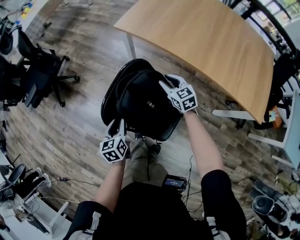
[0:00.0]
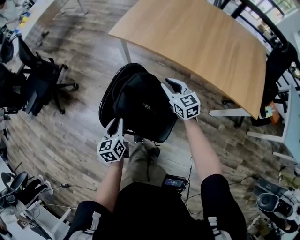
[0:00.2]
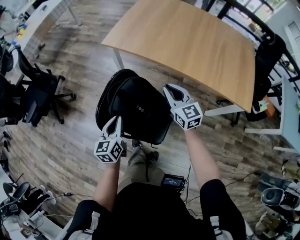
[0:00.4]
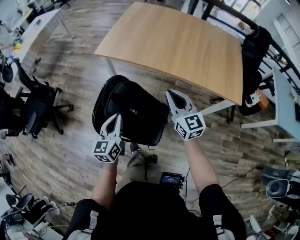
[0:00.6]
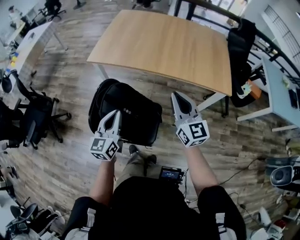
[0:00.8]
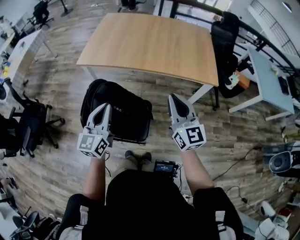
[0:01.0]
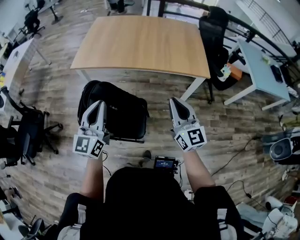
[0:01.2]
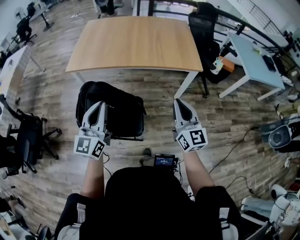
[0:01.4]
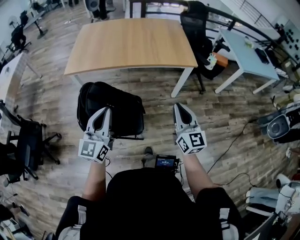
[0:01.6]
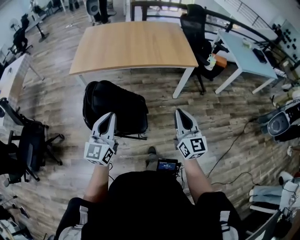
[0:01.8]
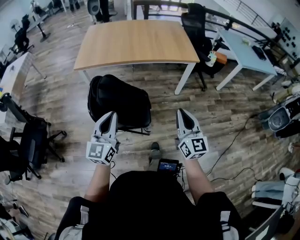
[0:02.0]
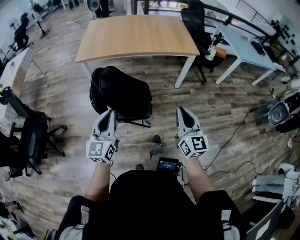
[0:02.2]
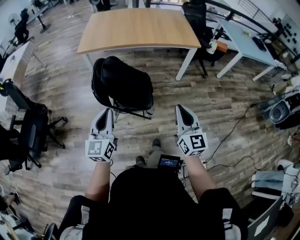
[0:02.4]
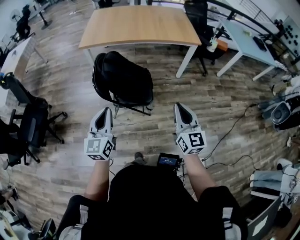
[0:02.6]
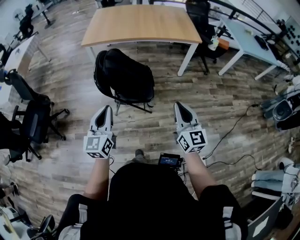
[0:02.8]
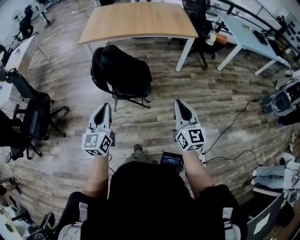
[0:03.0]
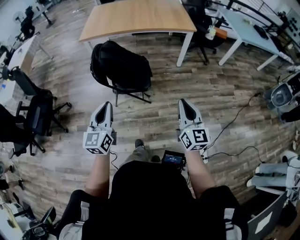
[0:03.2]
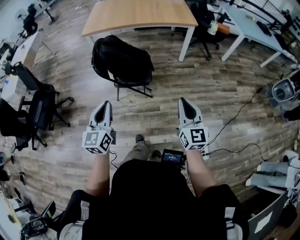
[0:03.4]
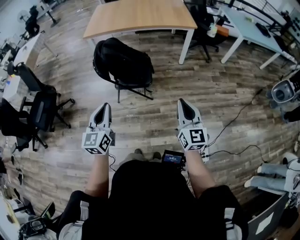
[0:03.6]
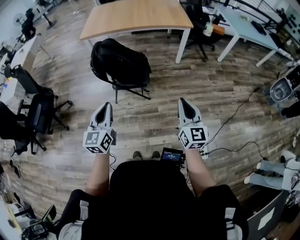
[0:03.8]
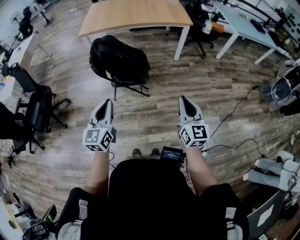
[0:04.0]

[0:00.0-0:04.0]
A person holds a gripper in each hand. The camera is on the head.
0.0 to 1.4 s: The right gripper shifts by about 60 cm, angles its fingers upward, by about 30 degrees, and closes. Meanwhile the left gripper is displaced upward by approximately 35 cm, angles its fingers upward, by some 50 degrees, and closes its fingers.
1.4 to 2.6 s: Both grippers move backward, about 30 cm.
2.6 to 4.0 s: The two grippers go roughly 20 cm backward and to the right.

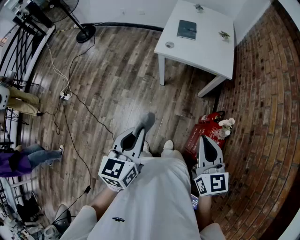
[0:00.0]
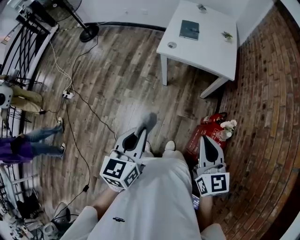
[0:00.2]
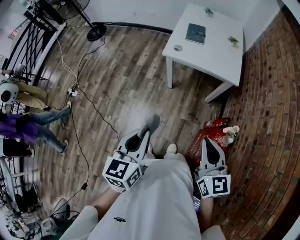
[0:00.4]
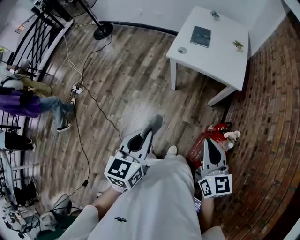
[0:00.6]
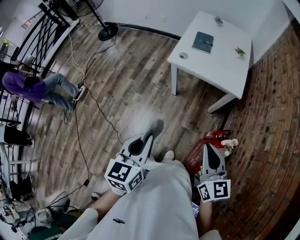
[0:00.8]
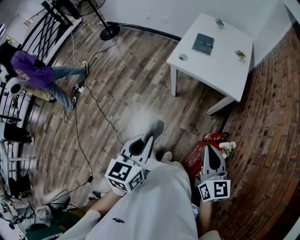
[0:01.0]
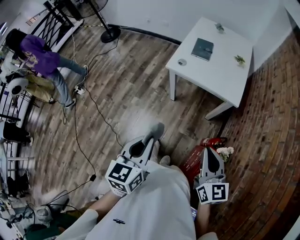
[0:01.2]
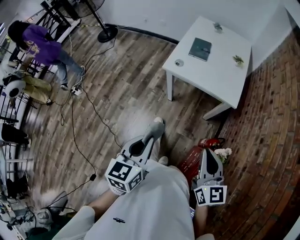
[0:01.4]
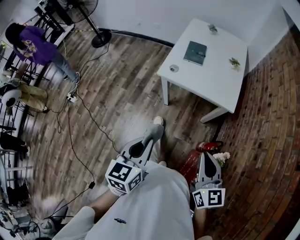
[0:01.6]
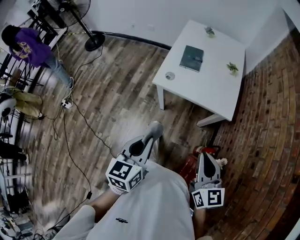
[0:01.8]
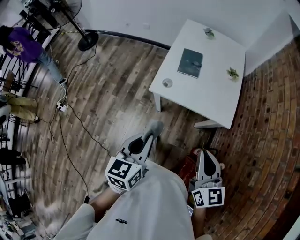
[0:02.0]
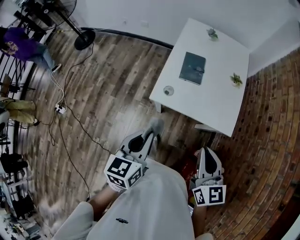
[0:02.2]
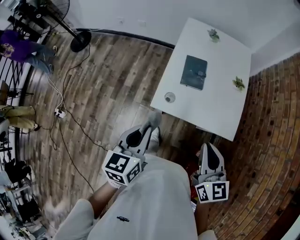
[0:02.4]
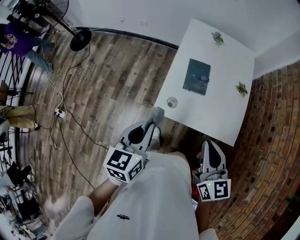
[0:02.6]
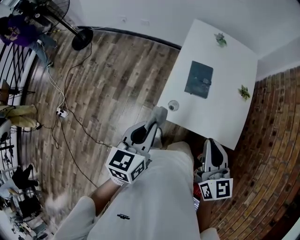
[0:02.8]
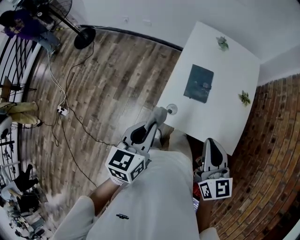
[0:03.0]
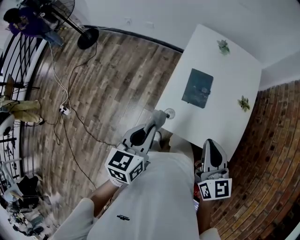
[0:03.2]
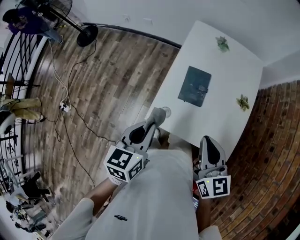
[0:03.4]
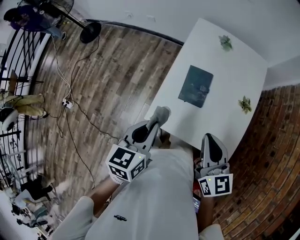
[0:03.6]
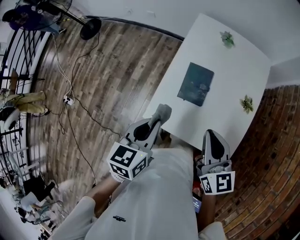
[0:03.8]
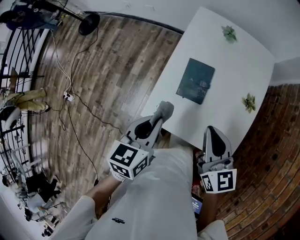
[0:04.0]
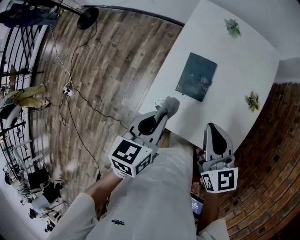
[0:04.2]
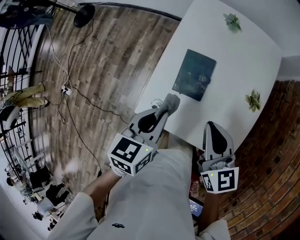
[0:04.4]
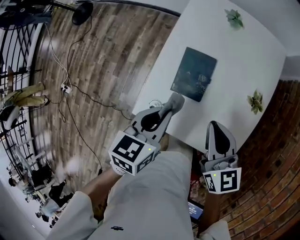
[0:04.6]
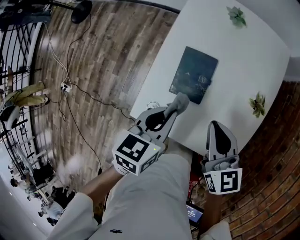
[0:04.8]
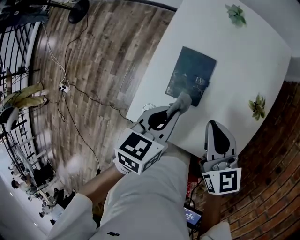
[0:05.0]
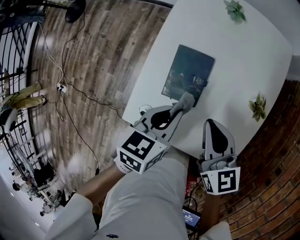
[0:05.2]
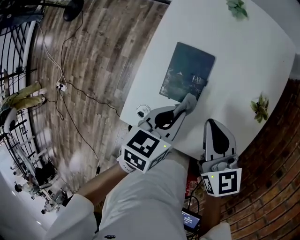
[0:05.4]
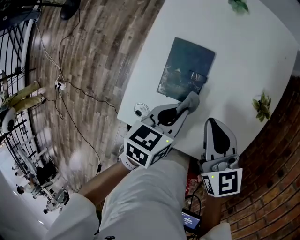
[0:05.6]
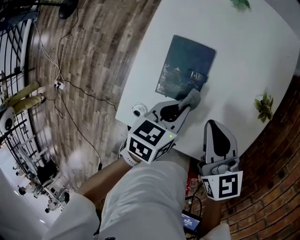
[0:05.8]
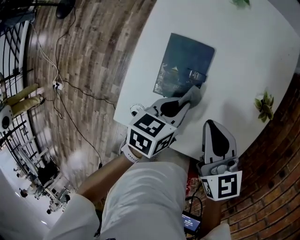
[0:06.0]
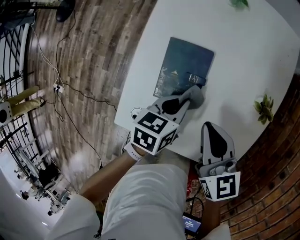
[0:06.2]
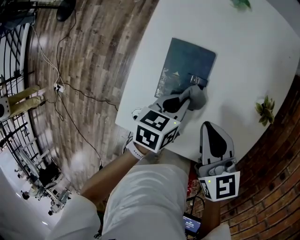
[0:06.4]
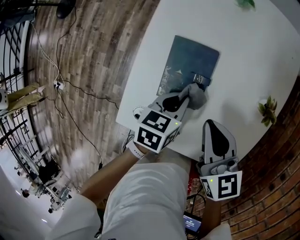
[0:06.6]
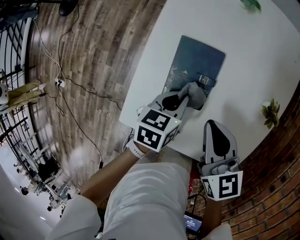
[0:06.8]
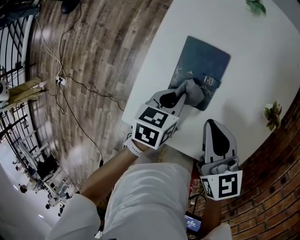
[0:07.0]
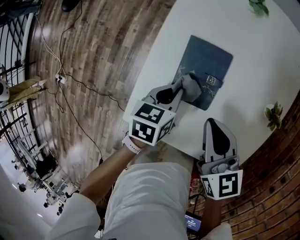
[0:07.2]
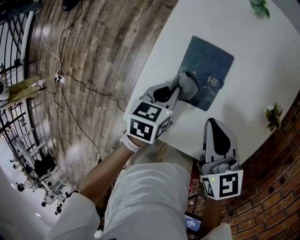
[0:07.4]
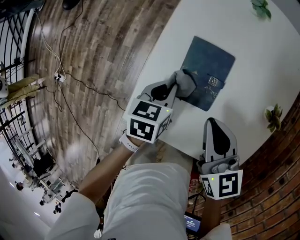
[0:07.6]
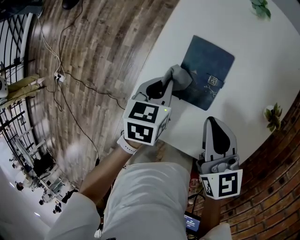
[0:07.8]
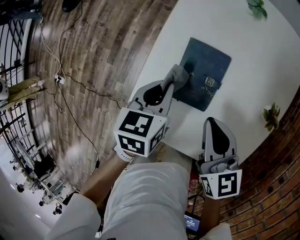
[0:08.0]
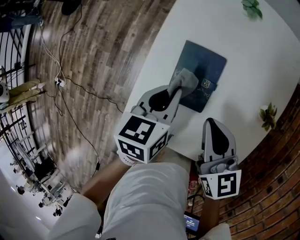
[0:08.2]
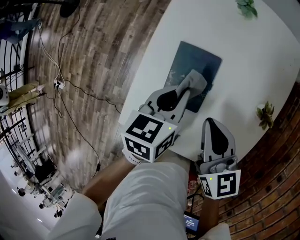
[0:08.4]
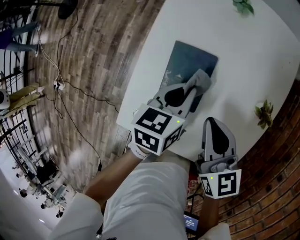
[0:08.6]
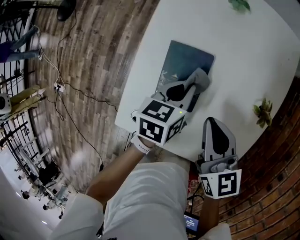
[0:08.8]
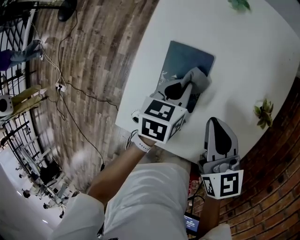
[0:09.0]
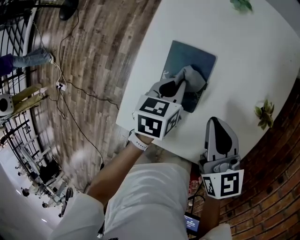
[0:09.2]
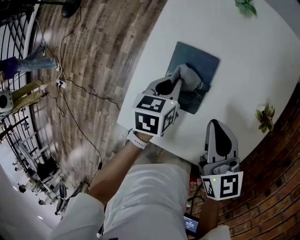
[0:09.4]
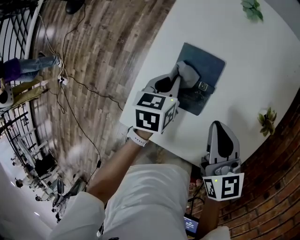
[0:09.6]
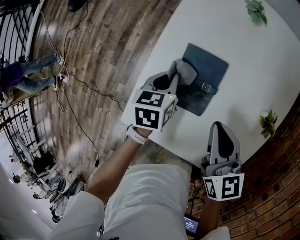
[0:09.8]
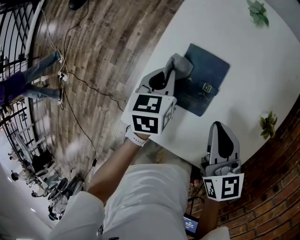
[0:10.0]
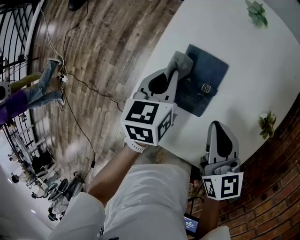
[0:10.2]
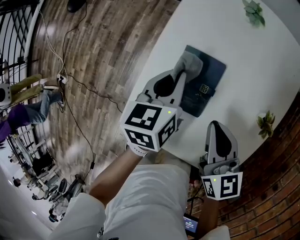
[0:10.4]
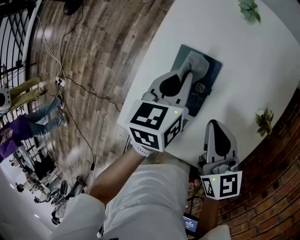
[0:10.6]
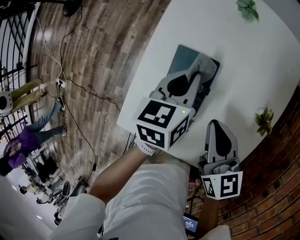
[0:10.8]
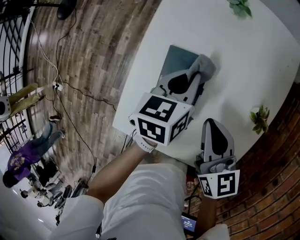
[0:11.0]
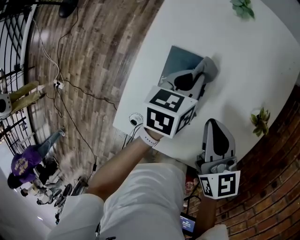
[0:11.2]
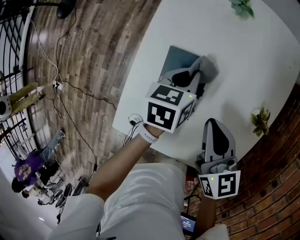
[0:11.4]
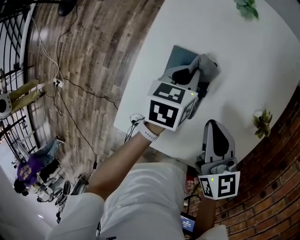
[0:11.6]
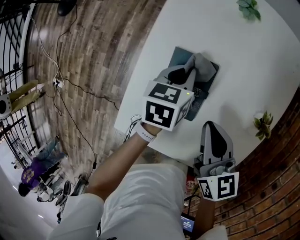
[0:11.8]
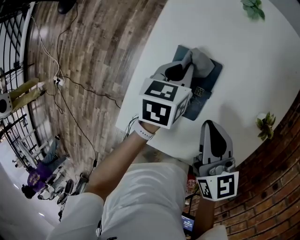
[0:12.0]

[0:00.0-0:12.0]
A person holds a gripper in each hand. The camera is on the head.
0.0 to 1.6 s: The two grippers go roughly 15 cm forward and to the right.
1.6 to 3.0 s: The pair of grippers is taken forward, about 40 cm.
3.0 to 4.4 s: The right gripper moves forward, downward and to the right, about 20 cm. The left gripper heads to the right, forward and downward, covering roughly 20 cm.
4.4 to 6.0 s: The left gripper is displaced downward and to the right by some 20 cm, and changes its angle by about 20 degrees, while the right gripper shifts roughly 10 cm downward.
6.0 to 7.6 s: The right gripper travels to the left by roughly 5 cm, while the left gripper is displaced to the left by some 10 cm.
7.6 to 9.0 s: The right gripper heads to the right, covering some 5 cm; the left gripper travels to the right by some 10 cm.
9.0 to 10.4 s: The left gripper shifts about 10 cm upward and to the left.
10.4 to 12.0 s: The left gripper moves downward, some 10 cm.

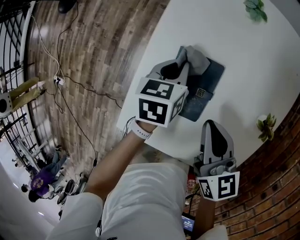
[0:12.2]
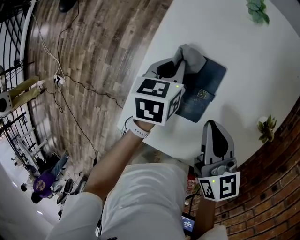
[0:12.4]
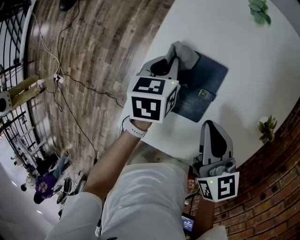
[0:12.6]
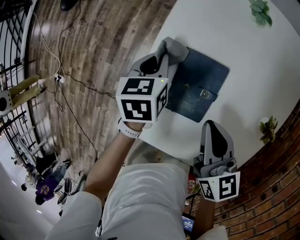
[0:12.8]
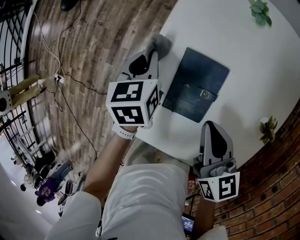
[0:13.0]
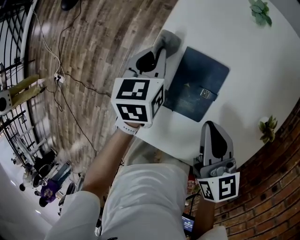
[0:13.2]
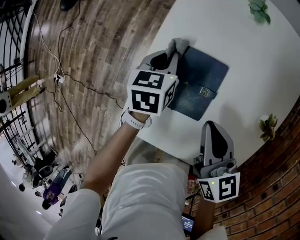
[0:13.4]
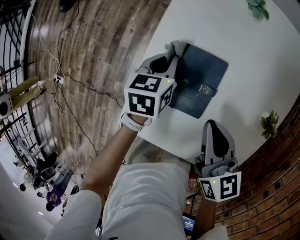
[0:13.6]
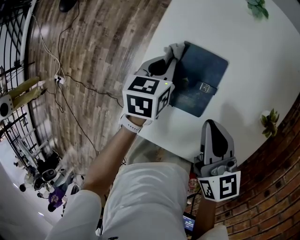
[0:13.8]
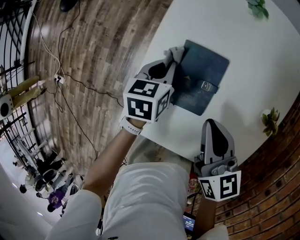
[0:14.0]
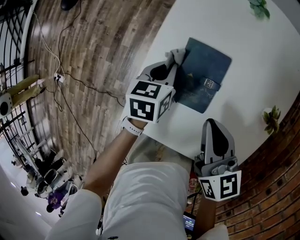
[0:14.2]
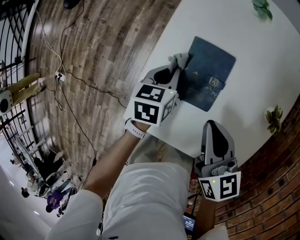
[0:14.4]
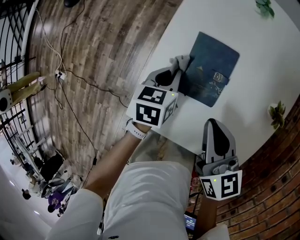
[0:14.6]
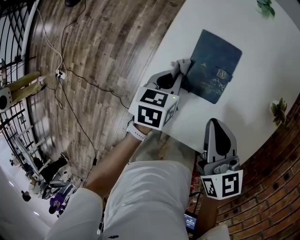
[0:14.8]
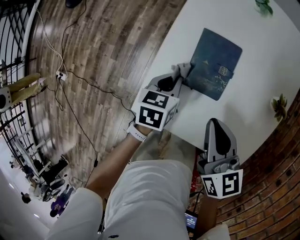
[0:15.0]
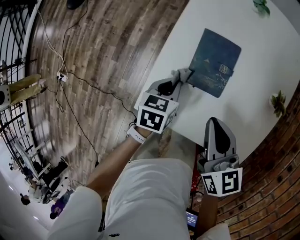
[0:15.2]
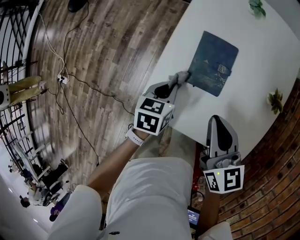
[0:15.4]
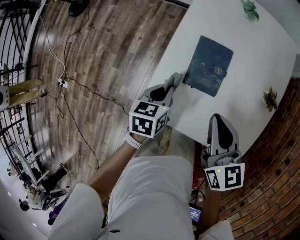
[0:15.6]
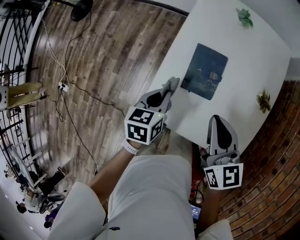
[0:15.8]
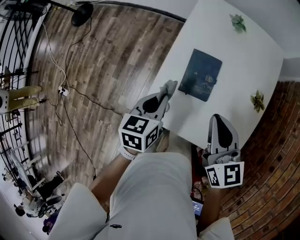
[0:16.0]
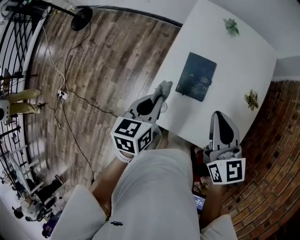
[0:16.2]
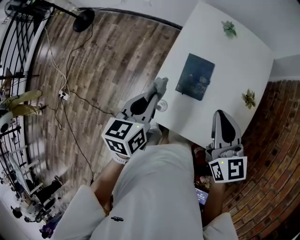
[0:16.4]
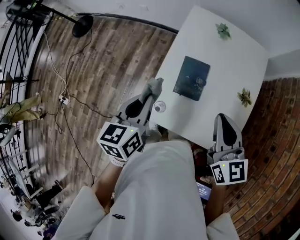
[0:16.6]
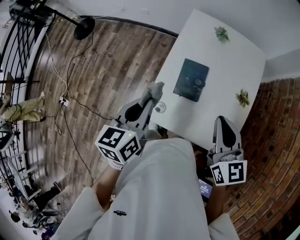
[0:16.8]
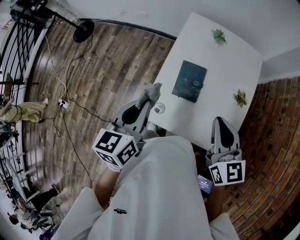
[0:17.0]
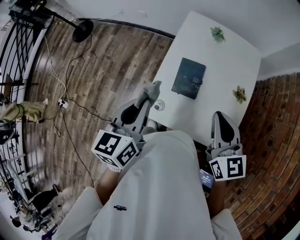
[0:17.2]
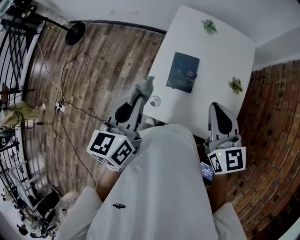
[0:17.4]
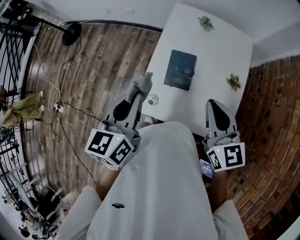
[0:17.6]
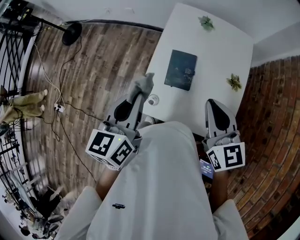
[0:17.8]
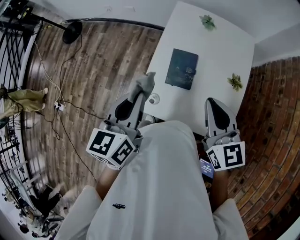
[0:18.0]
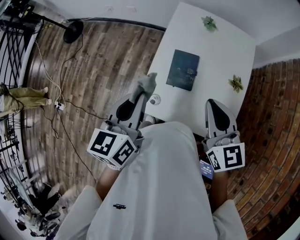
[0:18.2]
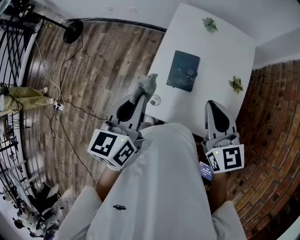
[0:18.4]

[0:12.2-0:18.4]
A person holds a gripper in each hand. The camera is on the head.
13.8 to 15.4 s: The right gripper travels backward by approximately 10 cm. The left gripper travels backward by some 15 cm.
15.4 to 16.8 s: The right gripper is displaced upward by some 15 cm; the left gripper heads upward, covering roughly 30 cm, and turns by roughly 30 degrees.
16.8 to 18.4 s: The grippers move only a little.

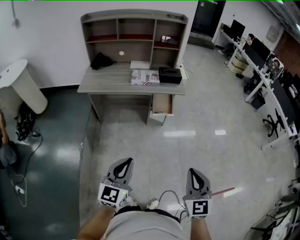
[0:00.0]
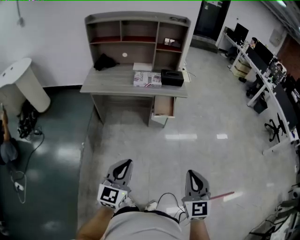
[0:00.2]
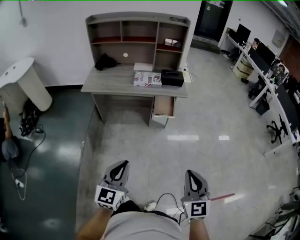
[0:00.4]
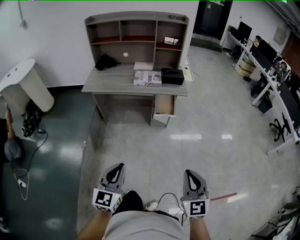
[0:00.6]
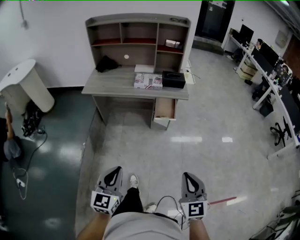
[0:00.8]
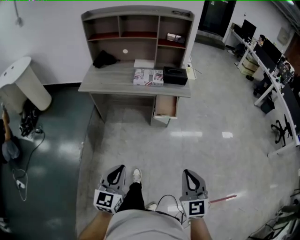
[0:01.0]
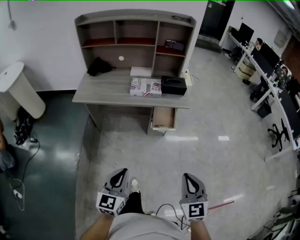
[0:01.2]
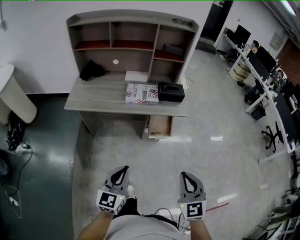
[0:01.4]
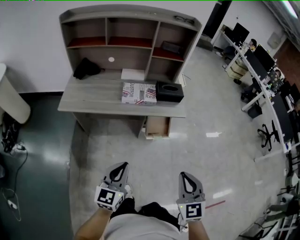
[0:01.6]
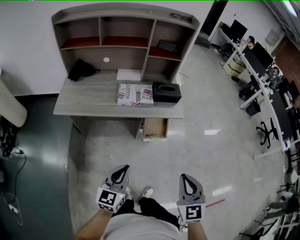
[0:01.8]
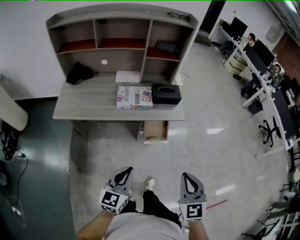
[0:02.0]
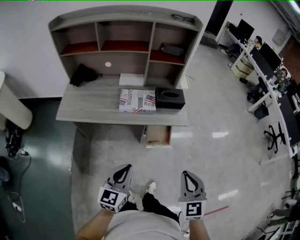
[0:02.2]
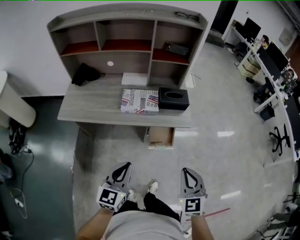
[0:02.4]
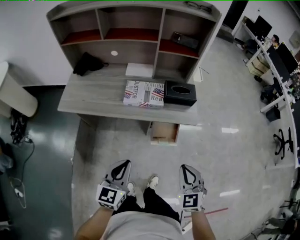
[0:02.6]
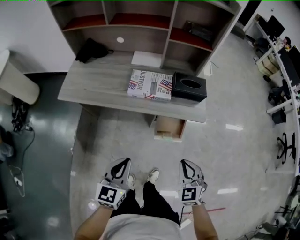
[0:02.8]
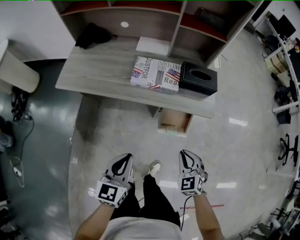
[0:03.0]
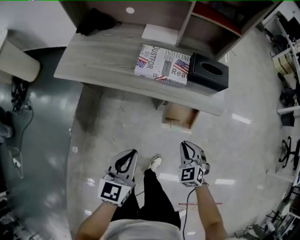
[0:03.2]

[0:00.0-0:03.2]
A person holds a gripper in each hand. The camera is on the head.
0.0 to 1.6 s: Both grippers travel together forward, about 25 cm.
1.6 to 3.2 s: The right gripper heads downward and forward, covering some 40 cm, and changes its angle by approximately 40 degrees; the left gripper heads forward and downward, covering some 20 cm.
